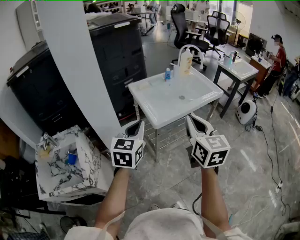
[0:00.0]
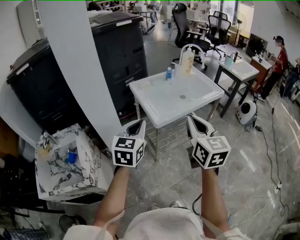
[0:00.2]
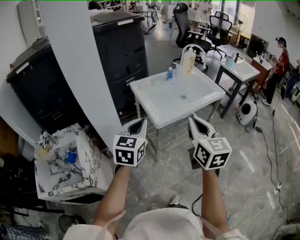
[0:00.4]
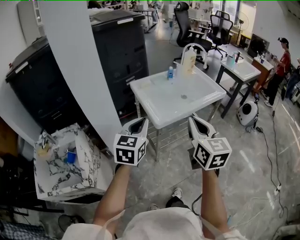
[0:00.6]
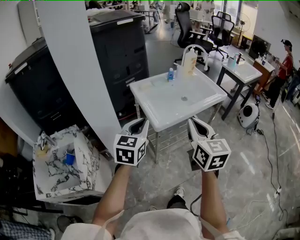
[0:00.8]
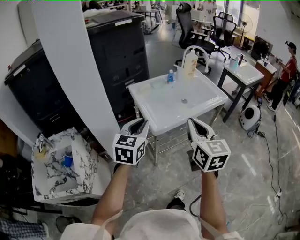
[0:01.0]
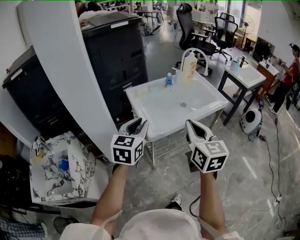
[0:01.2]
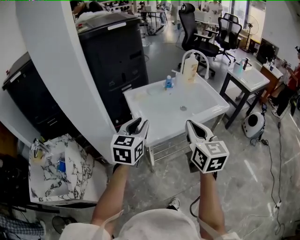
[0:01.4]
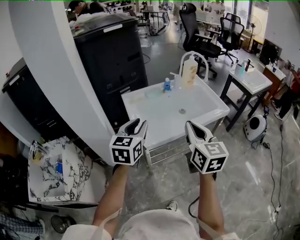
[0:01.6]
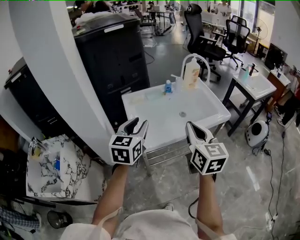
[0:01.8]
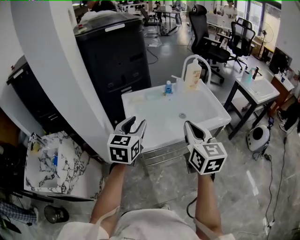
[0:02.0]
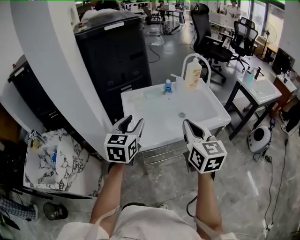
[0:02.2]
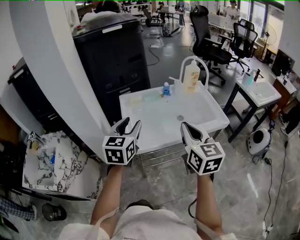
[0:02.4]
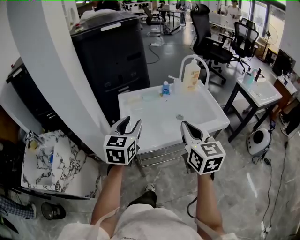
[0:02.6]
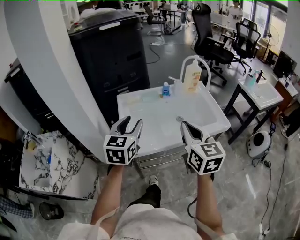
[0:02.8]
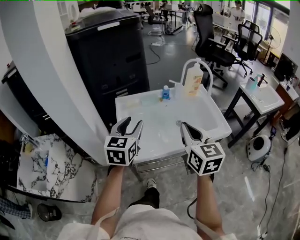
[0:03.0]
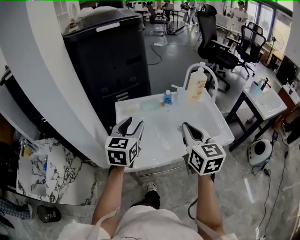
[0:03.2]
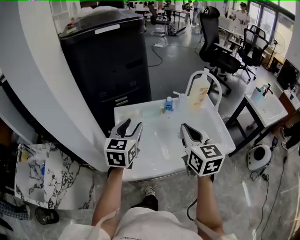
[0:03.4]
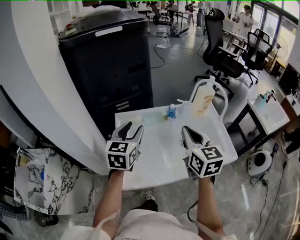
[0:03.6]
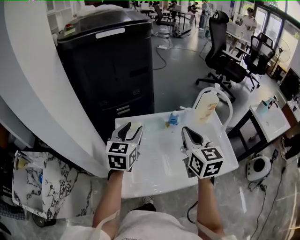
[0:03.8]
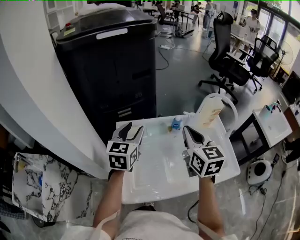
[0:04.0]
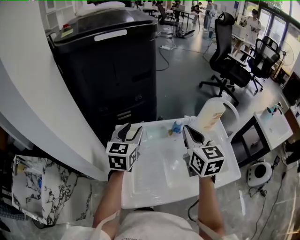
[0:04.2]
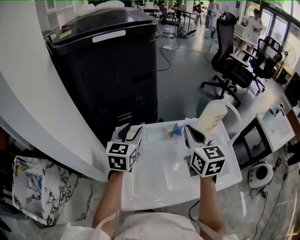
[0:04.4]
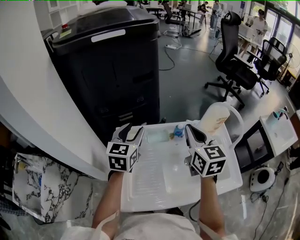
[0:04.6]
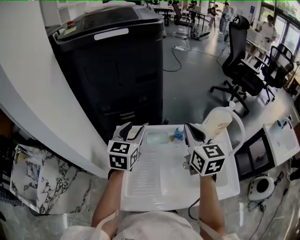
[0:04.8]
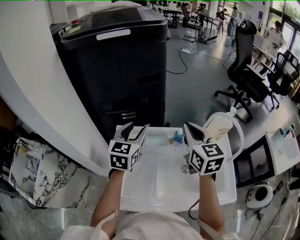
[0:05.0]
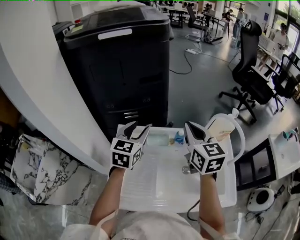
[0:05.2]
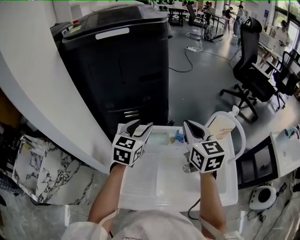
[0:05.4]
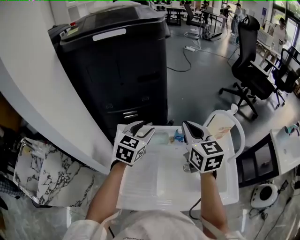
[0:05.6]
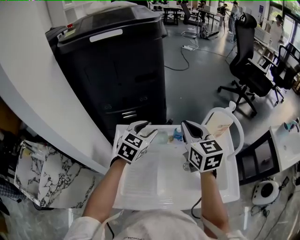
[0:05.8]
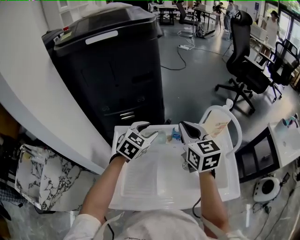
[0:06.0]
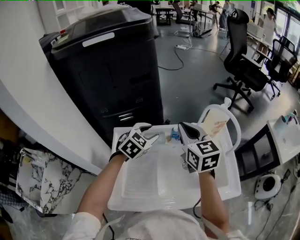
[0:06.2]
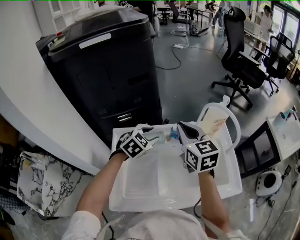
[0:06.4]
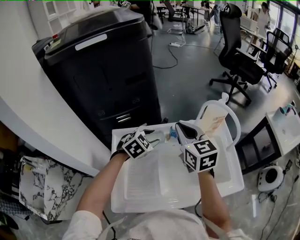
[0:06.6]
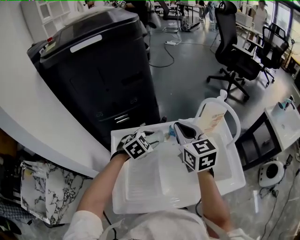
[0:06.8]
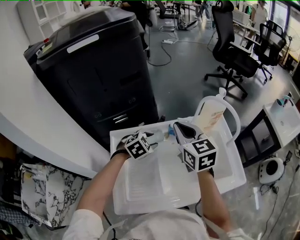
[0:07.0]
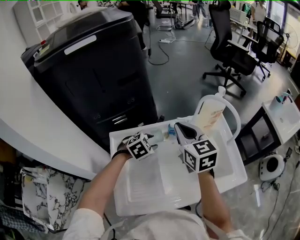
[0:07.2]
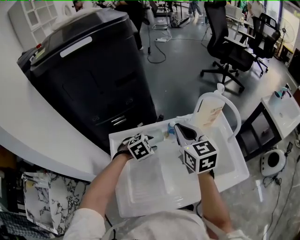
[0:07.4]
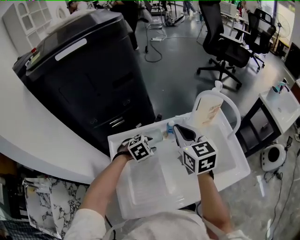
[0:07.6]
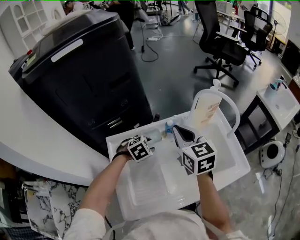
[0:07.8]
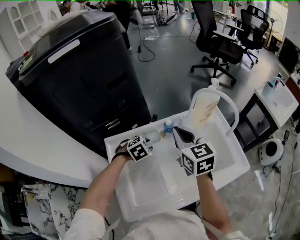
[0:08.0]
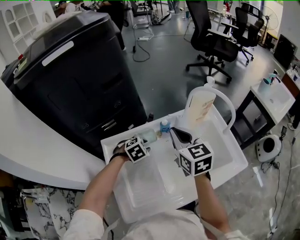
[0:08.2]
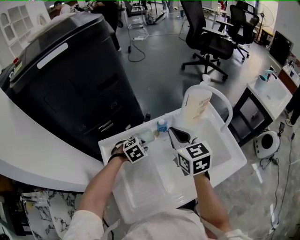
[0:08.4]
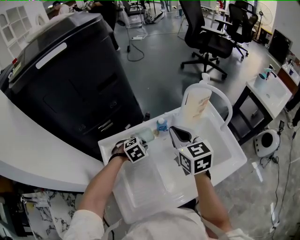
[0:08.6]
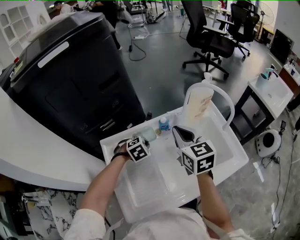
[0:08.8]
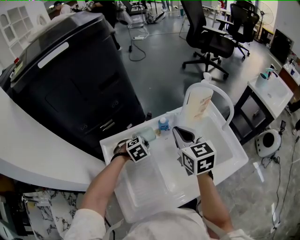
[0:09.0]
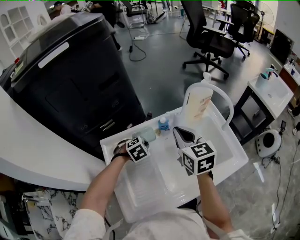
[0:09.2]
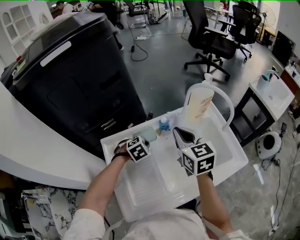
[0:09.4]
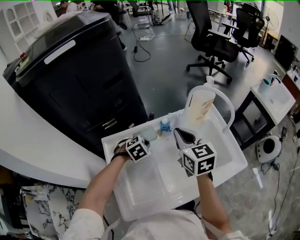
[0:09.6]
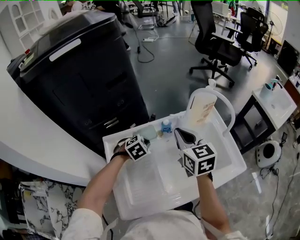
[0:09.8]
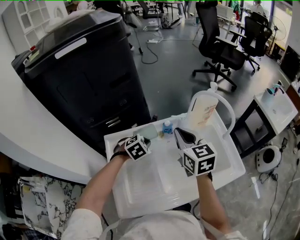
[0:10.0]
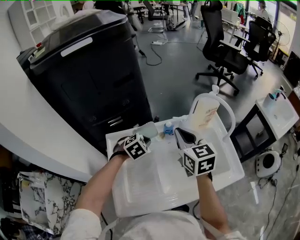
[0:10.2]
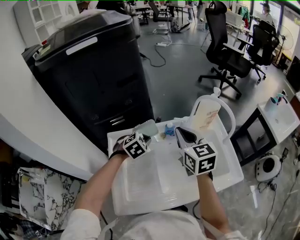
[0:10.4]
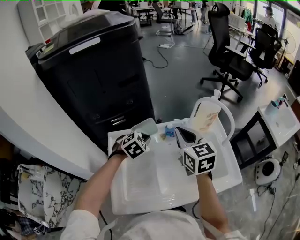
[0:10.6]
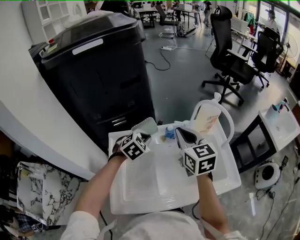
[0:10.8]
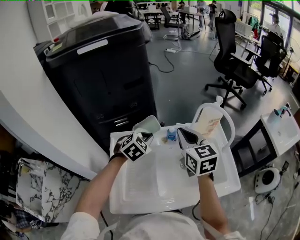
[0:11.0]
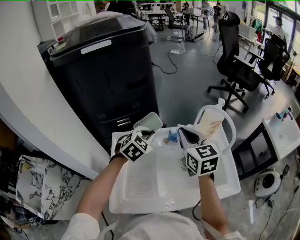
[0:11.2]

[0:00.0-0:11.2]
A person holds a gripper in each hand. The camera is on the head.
0:00.0 to 0:01.6: Both grippers move forward and to the right, roughly 20 cm. The left gripper opens its fingers.
0:01.6 to 0:03.2: The right gripper heads forward and to the right, covering about 20 cm; the left gripper is displaced forward by some 15 cm.
0:03.2 to 0:04.8: Both grippers travel together forward, approximately 25 cm.
0:04.8 to 0:06.4: The left gripper shifts approximately 15 cm to the right and downward, and turns by approximately 50 degrees.
0:06.4 to 0:08.0: The left gripper shifts roughly 15 cm downward, and turns by some 30 degrees.
0:08.0 to 0:09.6: The left gripper closes up.
0:09.6 to 0:11.2: The right gripper heads upward, covering about 5 cm, while the left gripper shifts approximately 15 cm upward, and changes its angle by approximately 30 degrees.

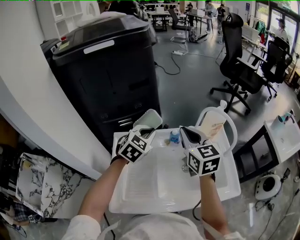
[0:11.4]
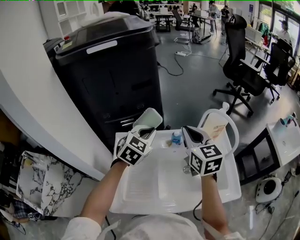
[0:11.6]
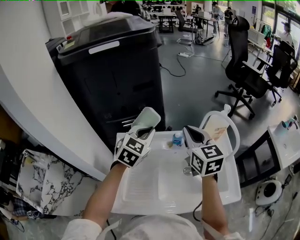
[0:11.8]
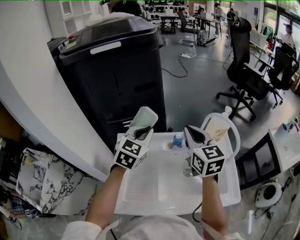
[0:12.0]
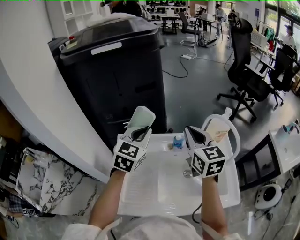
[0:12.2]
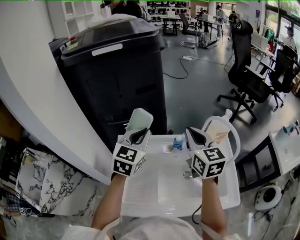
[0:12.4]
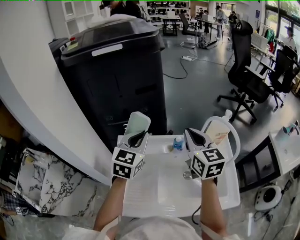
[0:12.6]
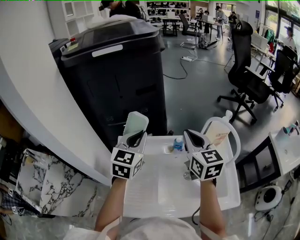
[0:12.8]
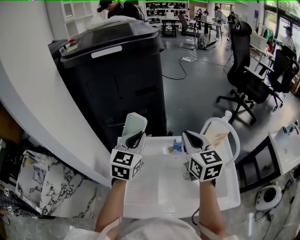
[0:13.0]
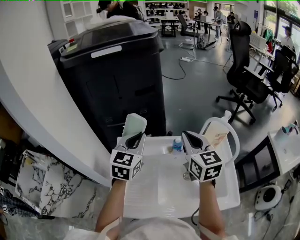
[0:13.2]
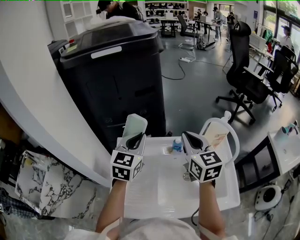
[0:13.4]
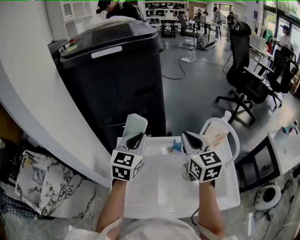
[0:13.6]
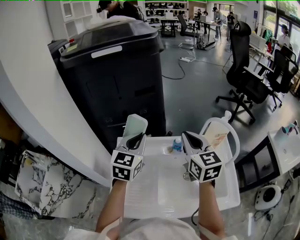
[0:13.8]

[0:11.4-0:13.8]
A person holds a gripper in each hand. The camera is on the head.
0:11.4 to 0:12.6: The left gripper travels upward and to the left by roughly 10 cm, and turns by about 30 degrees.
0:12.6 to 0:13.8: Neither gripper changes place.

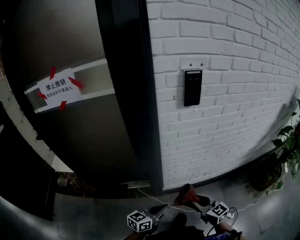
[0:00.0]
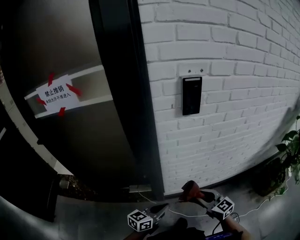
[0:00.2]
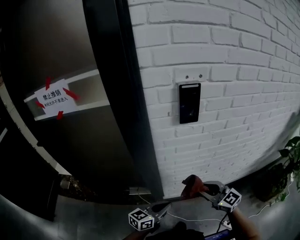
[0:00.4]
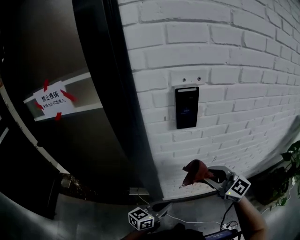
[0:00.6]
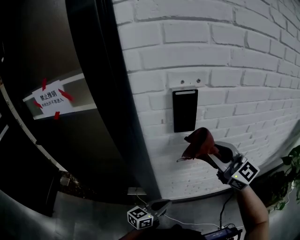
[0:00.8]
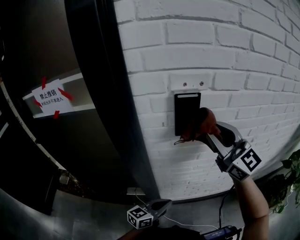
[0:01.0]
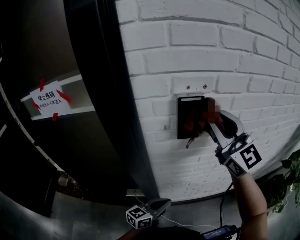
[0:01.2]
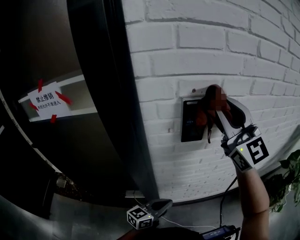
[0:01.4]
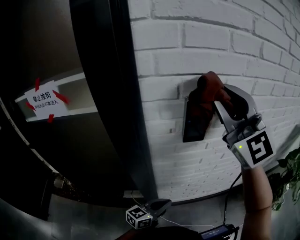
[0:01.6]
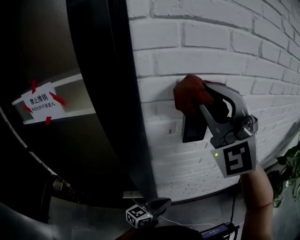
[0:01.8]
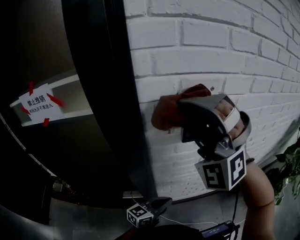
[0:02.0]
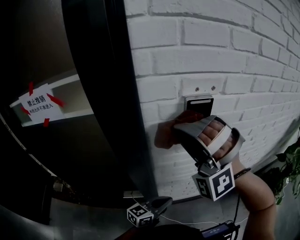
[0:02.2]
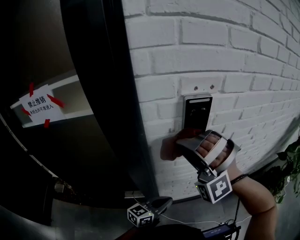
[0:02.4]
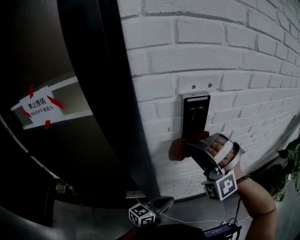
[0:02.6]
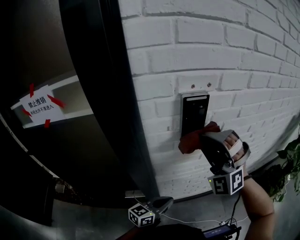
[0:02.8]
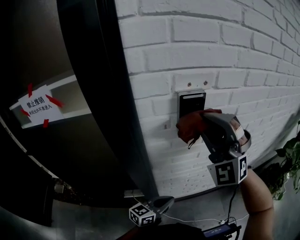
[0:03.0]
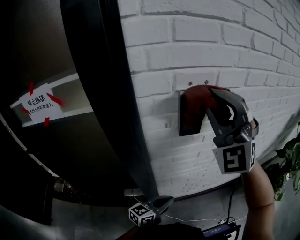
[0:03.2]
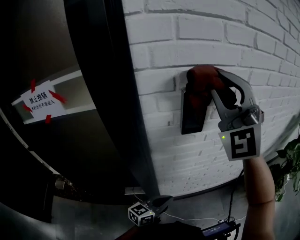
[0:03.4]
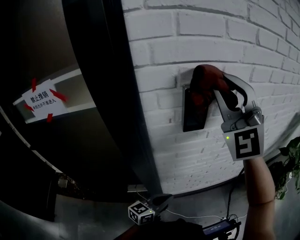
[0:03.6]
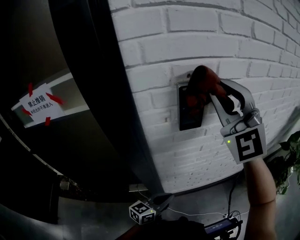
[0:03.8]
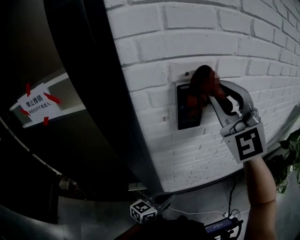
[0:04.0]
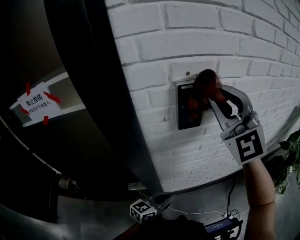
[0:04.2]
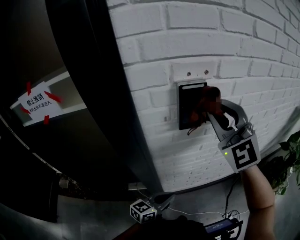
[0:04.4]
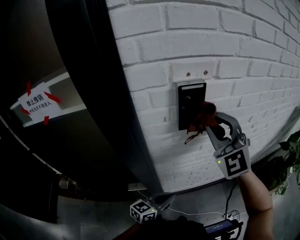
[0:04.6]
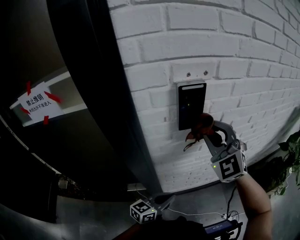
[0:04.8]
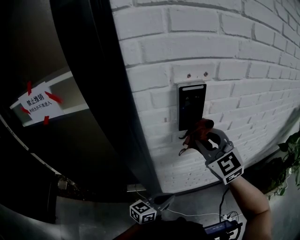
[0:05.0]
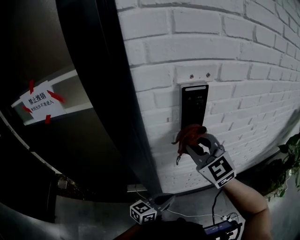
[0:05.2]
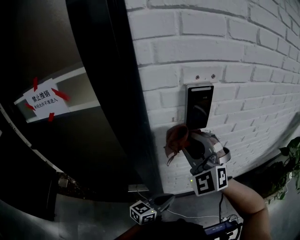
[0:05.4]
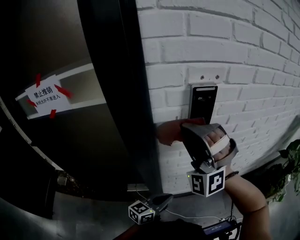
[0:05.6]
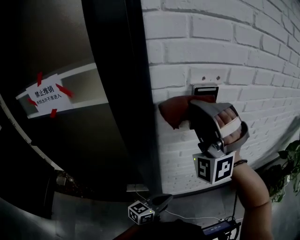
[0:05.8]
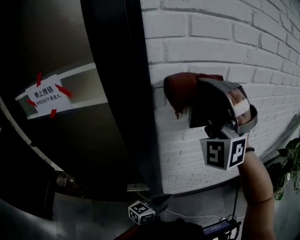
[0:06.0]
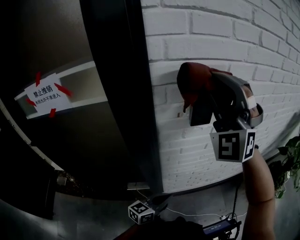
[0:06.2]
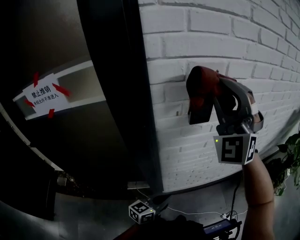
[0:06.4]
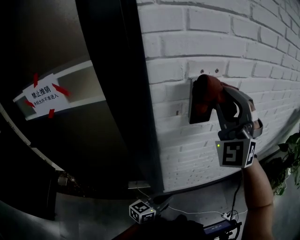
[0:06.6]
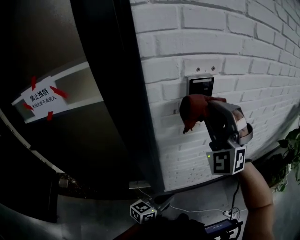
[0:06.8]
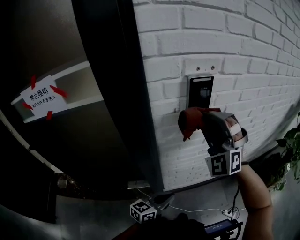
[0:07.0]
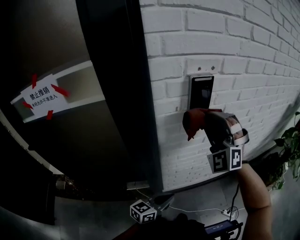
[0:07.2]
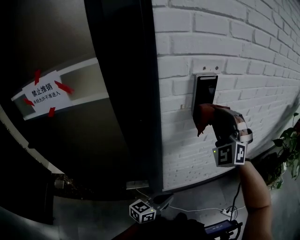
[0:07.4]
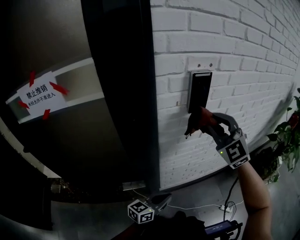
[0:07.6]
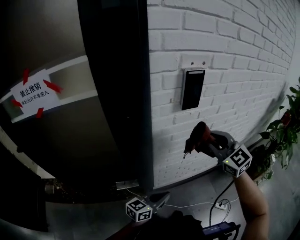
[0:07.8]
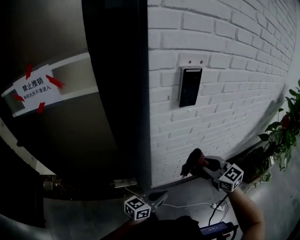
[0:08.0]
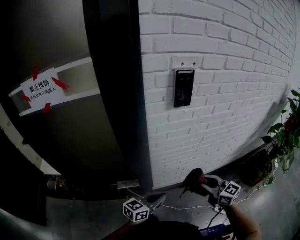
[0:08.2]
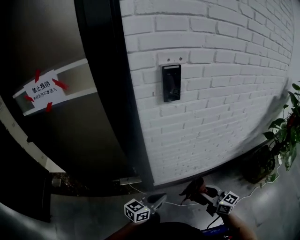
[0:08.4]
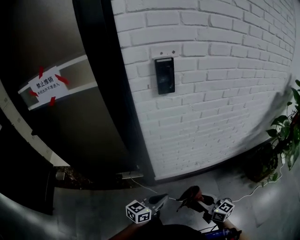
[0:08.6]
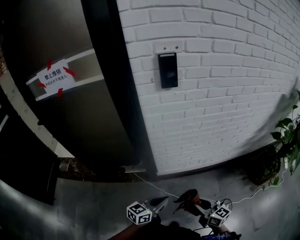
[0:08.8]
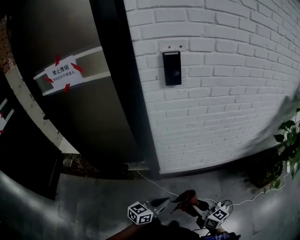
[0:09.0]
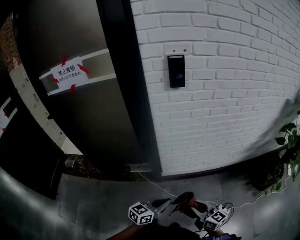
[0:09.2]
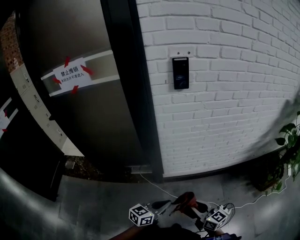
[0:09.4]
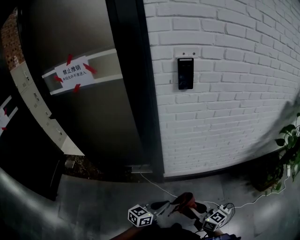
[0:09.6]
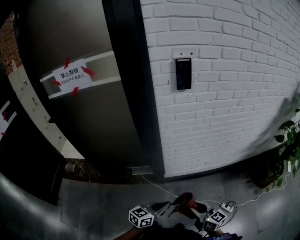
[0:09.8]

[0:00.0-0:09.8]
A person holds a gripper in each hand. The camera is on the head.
0:00.0 to 0:01.4: The left gripper heads forward, covering about 20 cm. The right gripper moves upward and forward, some 60 cm, and points its fingers some 30 degrees further upward.
0:01.4 to 0:02.8: The right gripper travels downward by some 15 cm, and twists roughly 60 degrees counterclockwise, seen from behind.
0:02.8 to 0:04.2: The right gripper shifts some 10 cm upward, and changes its angle by approximately 40 degrees.
0:04.2 to 0:05.6: The right gripper heads to the left, downward and backward, covering some 15 cm, and turns by approximately 40 degrees.
0:05.6 to 0:07.0: The right gripper moves to the right, approximately 5 cm, and travels upward and back again, some 15 cm each way.
0:07.0 to 0:08.4: The left gripper is displaced backward and to the right by some 10 cm, while the right gripper shifts about 40 cm downward, backward and to the right, and rolls clockwise, seen from behind, by roughly 90 degrees.
0:08.4 to 0:09.8: The left gripper heads backward, covering roughly 15 cm. The right gripper goes some 15 cm backward and to the left.
